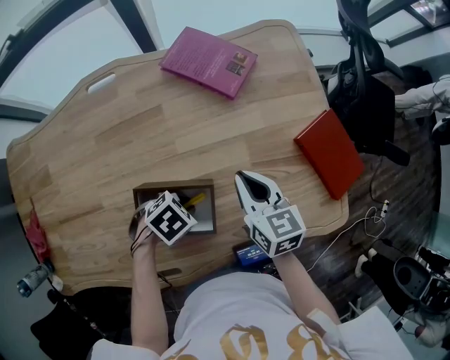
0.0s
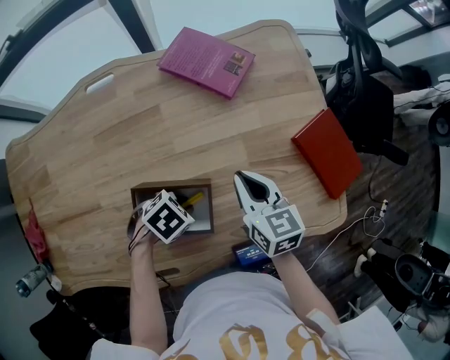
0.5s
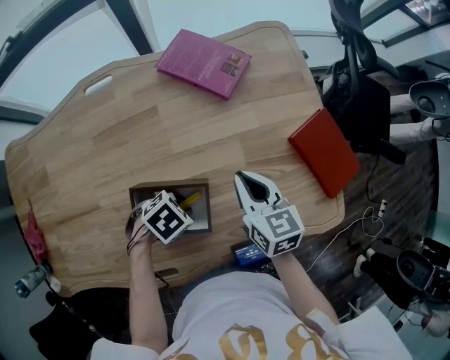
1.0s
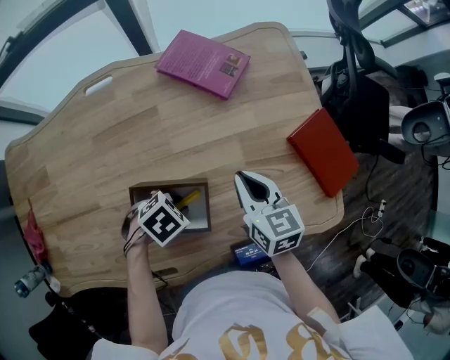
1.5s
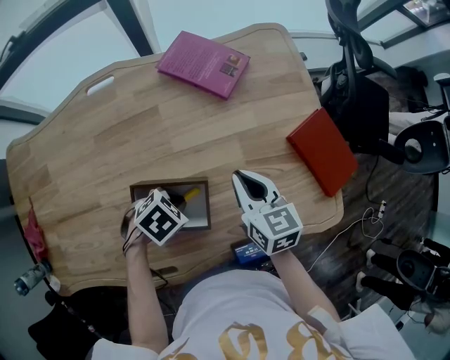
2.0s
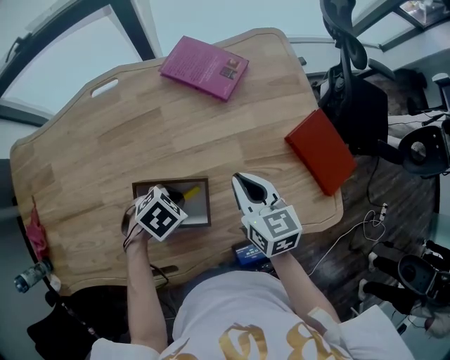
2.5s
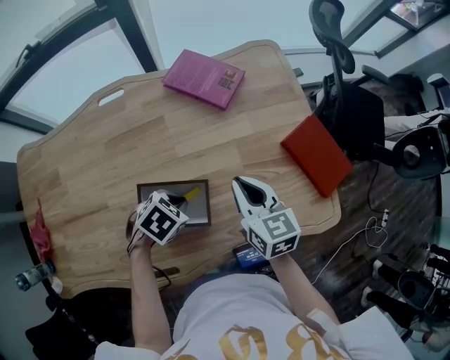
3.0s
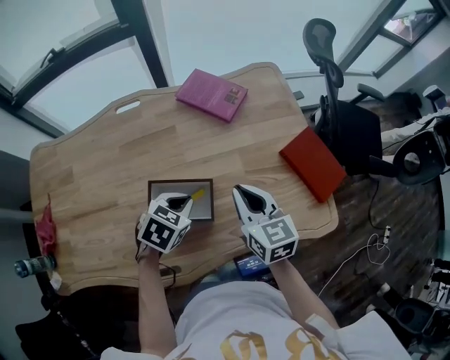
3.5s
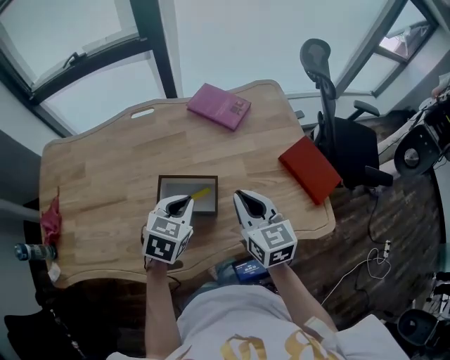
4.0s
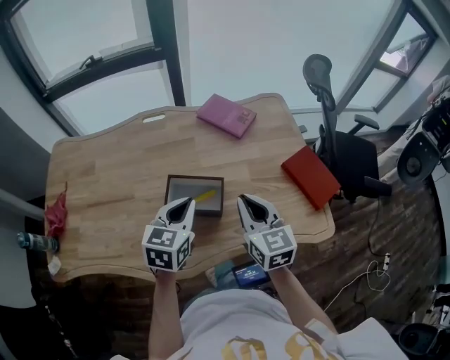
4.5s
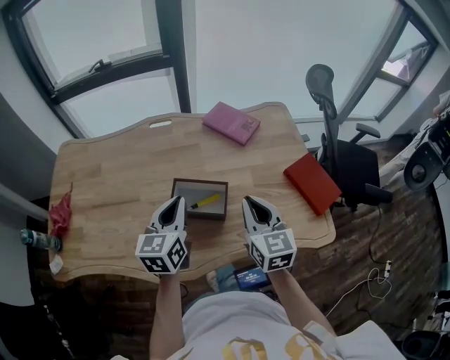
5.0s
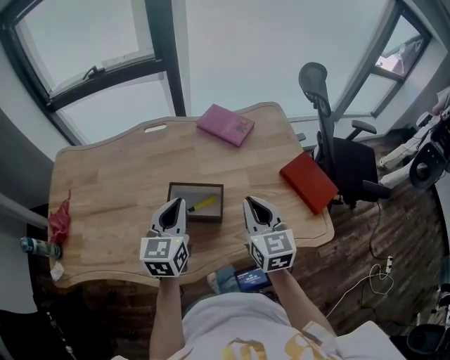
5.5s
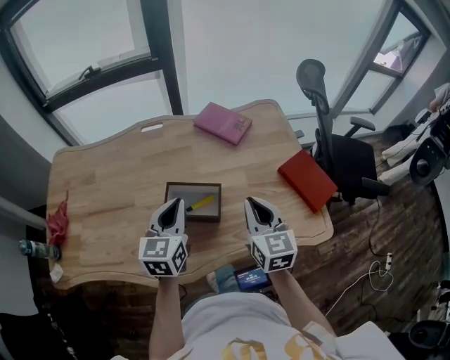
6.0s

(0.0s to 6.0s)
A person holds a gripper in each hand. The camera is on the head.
0.0s - 2.0s: The grippers move only a little.
2.0s - 4.0s: The two grippers go about 15 cm upward. The left gripper swivels roughly 50 degrees.
4.0s - 6.0s: The left gripper travels upward by approximately 5 cm, and changes its angle by roughly 30 degrees.

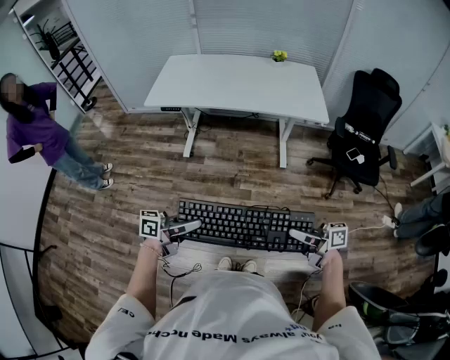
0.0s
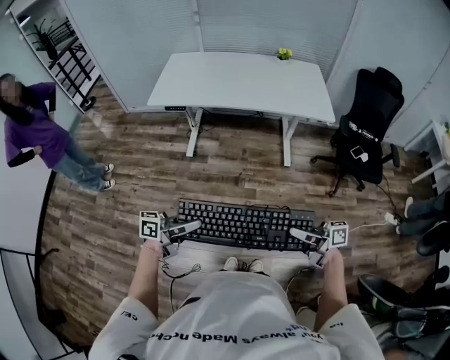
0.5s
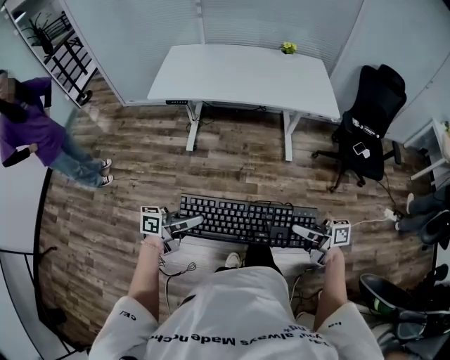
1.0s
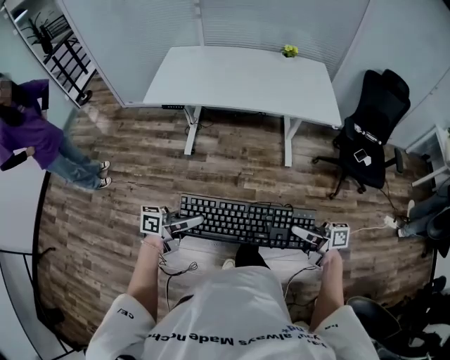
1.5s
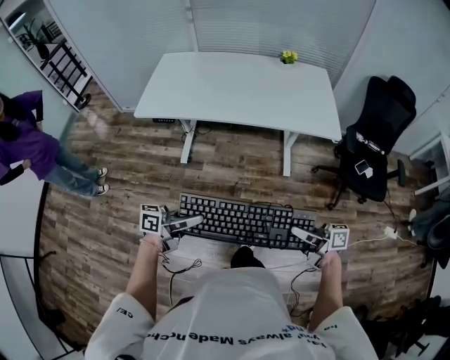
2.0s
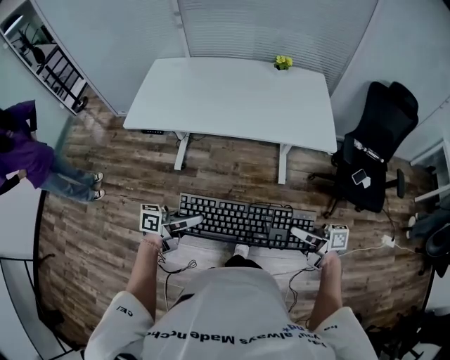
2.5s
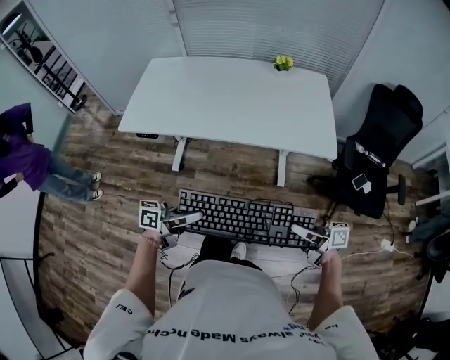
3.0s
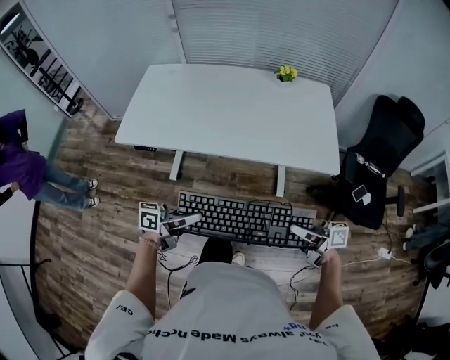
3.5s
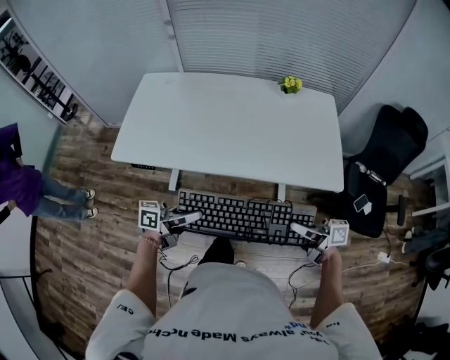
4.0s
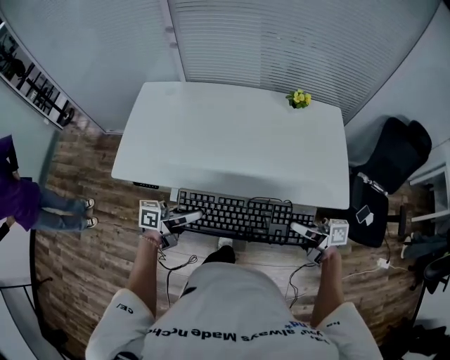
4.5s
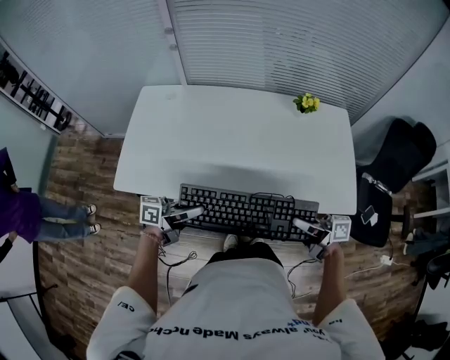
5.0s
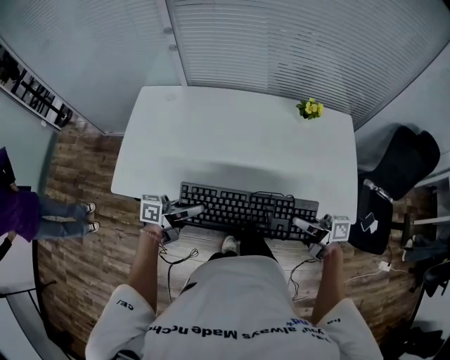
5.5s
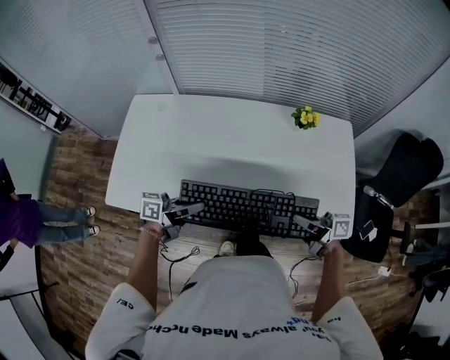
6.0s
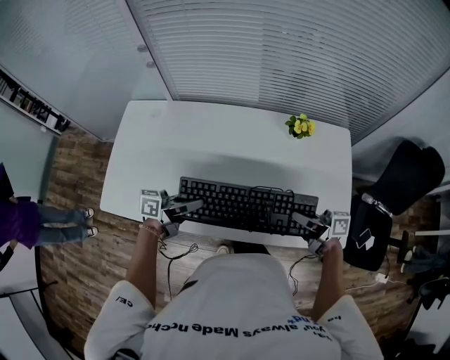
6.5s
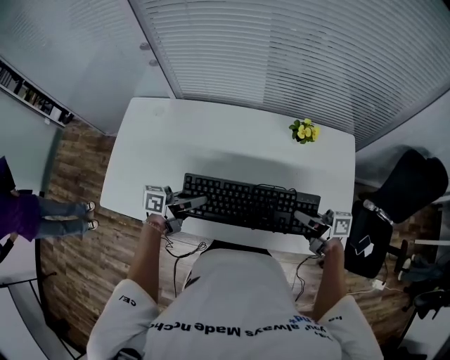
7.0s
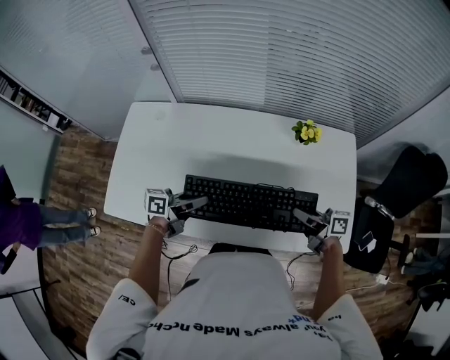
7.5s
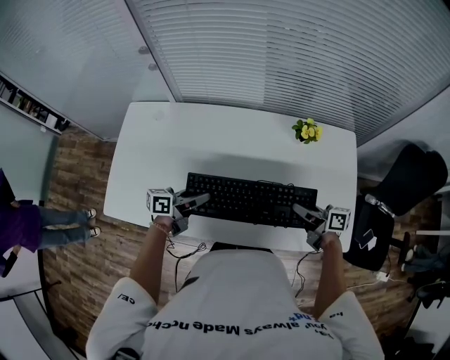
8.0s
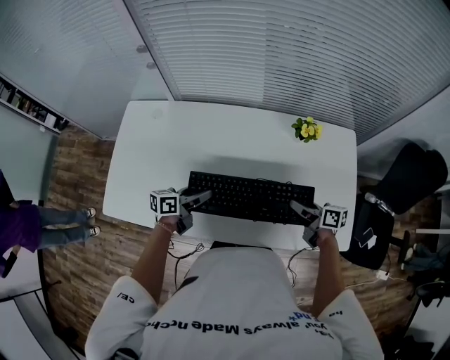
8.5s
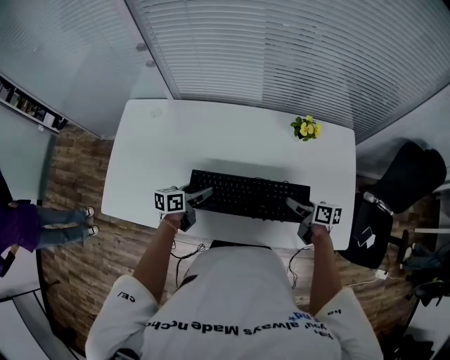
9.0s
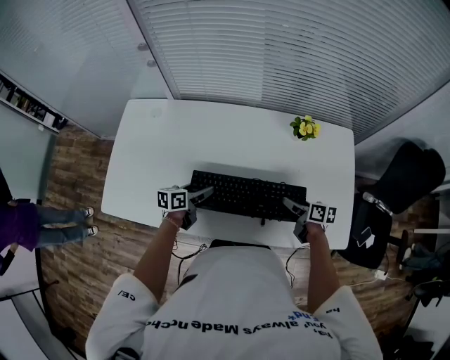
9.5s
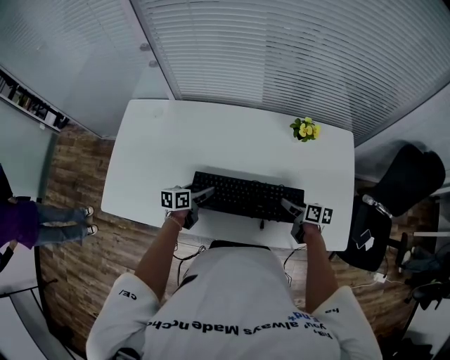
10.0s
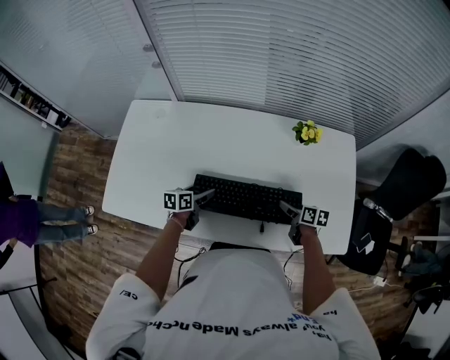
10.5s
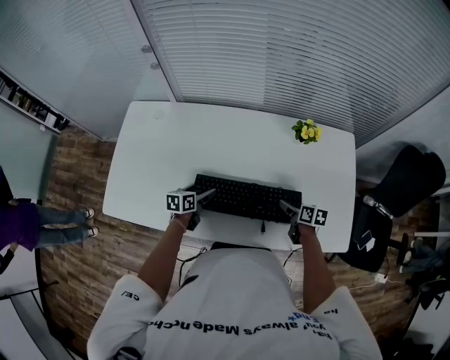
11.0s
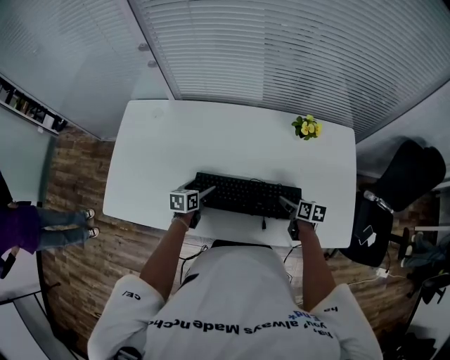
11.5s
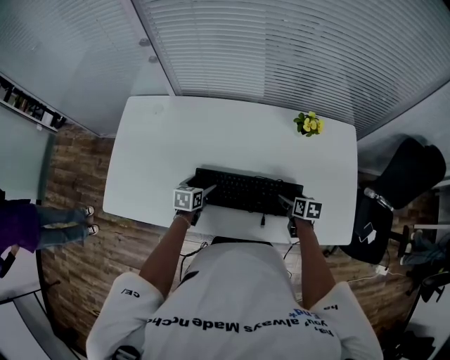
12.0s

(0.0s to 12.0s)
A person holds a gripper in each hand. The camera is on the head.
0.0s - 2.0s: The right gripper ends up about 20 cm from where it was. The left gripper moves about 20 cm.
2.0s - 4.0s: The right gripper changes place by some 30 cm; the left gripper shifts by approximately 30 cm.
4.0s - 6.0s: The left gripper moves some 25 cm. Meanwhile the right gripper moves approximately 25 cm.
6.0s - 8.0s: The left gripper shifts by roughly 10 cm, while the right gripper shifts by about 10 cm.
8.0s - 10.0s: The two grippers go approximately 10 cm downward. The left gripper changes its angle by roughly 30 degrees, and opens up. Meanwhile the right gripper turns by some 30 degrees, and opens.
10.0s - 12.0s: The left gripper turns by roughly 20 degrees. Meanwhile the right gripper turns by about 20 degrees.

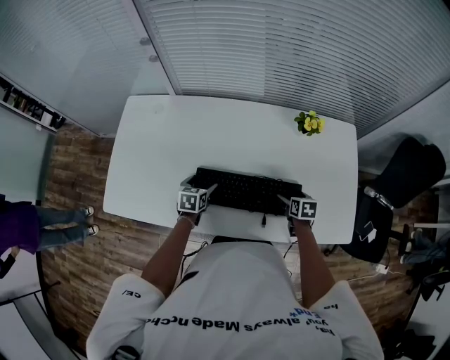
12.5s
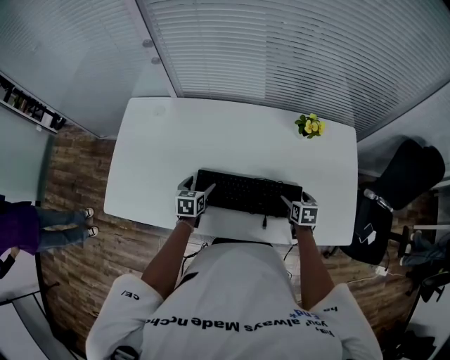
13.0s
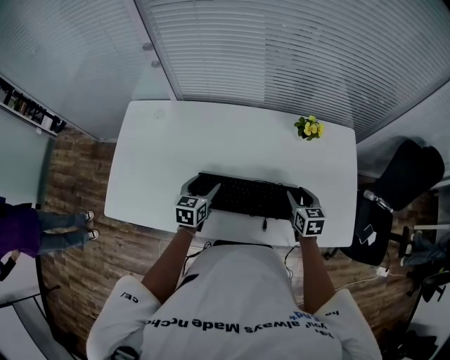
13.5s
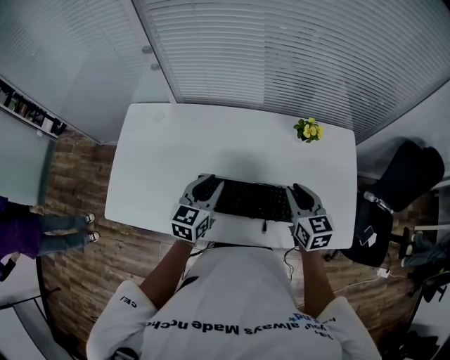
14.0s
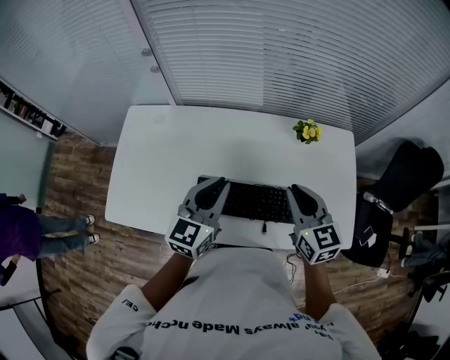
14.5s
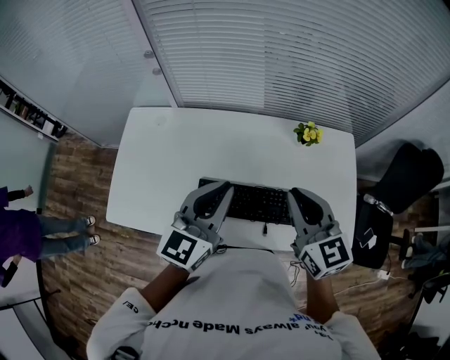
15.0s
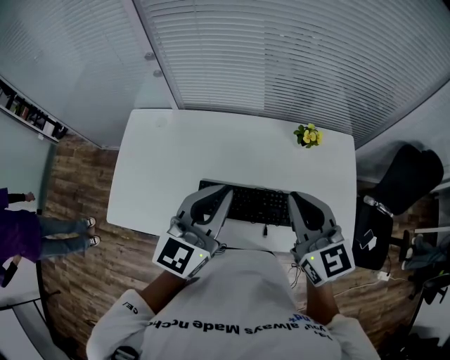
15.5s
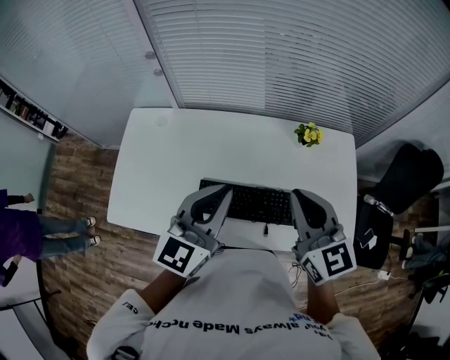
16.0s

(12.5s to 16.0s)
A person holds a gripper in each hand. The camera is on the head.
12.5s - 14.5s: The grippers both shift upward by approximately 30 cm. The right gripper angles its fingers upward, by roughly 40 degrees, and closes up. Meanwhile the left gripper tips its fingers upward by roughly 40 degrees, and closes its fingers.
14.5s - 16.0s: The two grippers go approximately 10 cm upward.

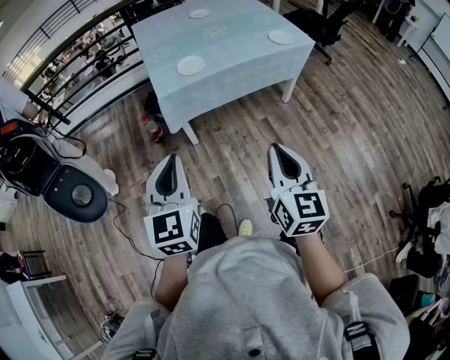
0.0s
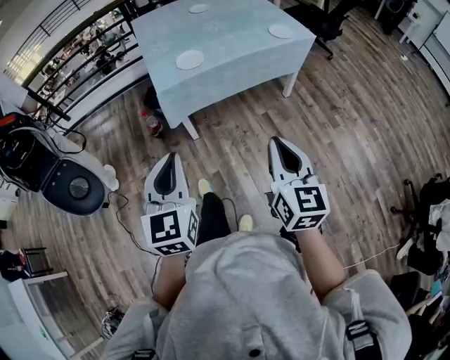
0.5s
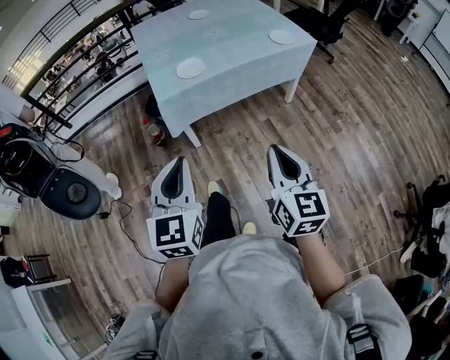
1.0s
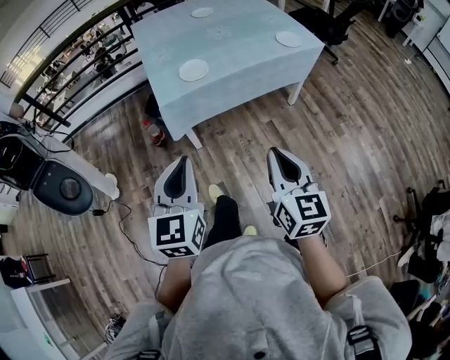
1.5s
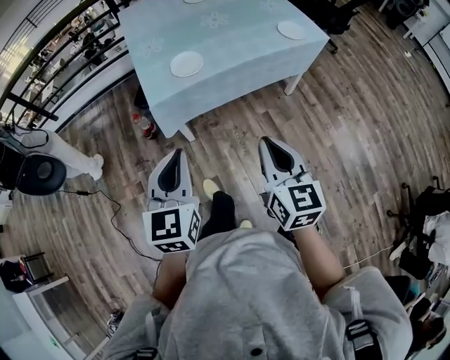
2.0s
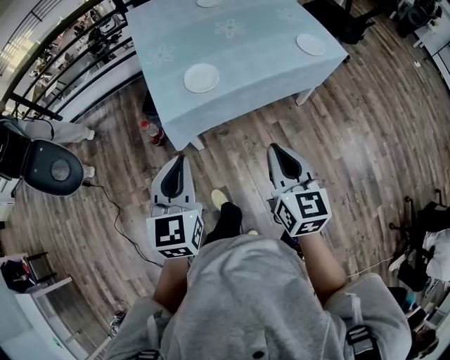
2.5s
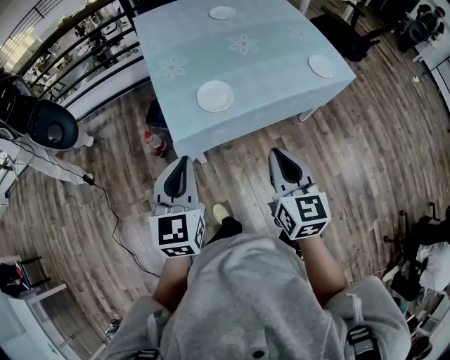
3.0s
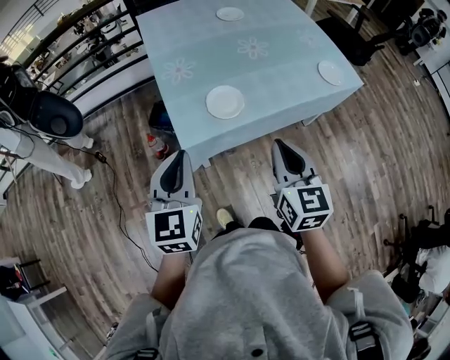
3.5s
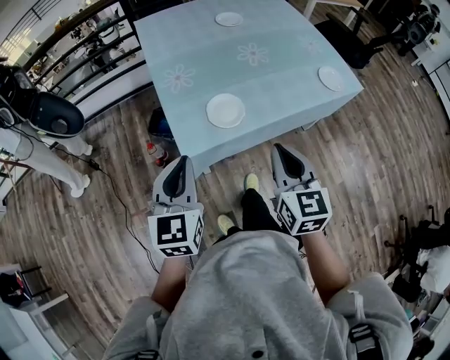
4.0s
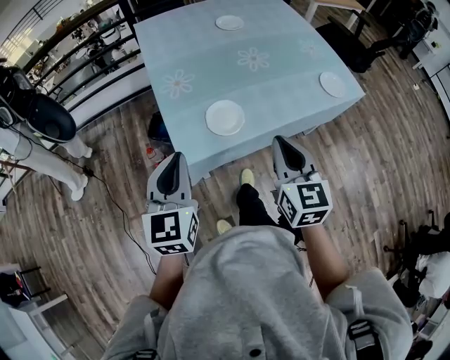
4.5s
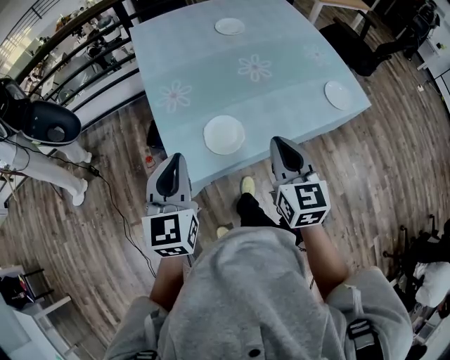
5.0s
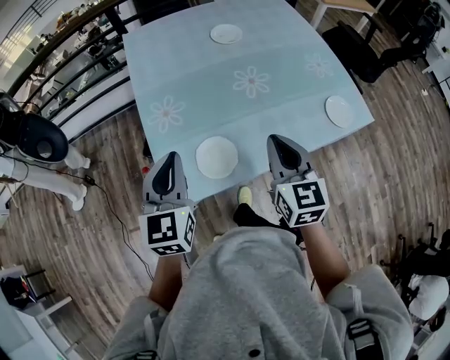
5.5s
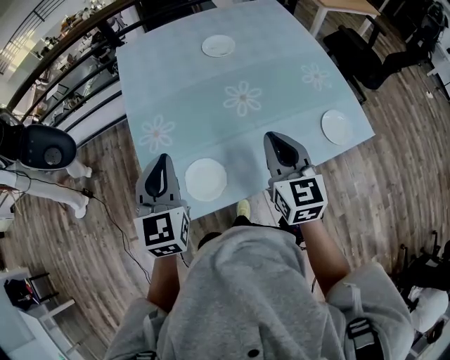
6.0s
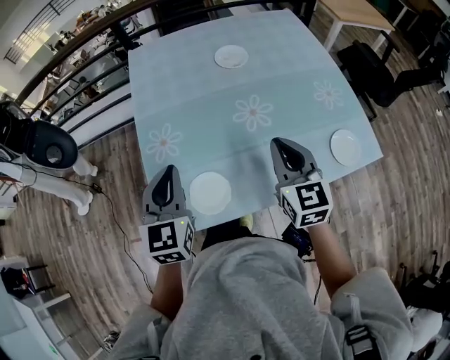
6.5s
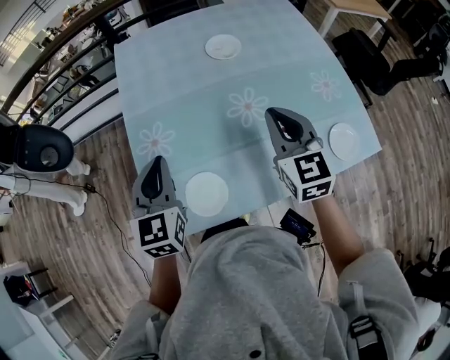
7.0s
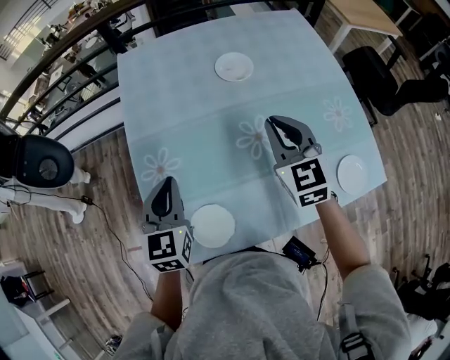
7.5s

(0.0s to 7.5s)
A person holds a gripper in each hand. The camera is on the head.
0.0s - 2.0s: The grippers both shift forward by roughly 15 cm.
2.0s - 4.0s: Both grippers travel together forward and to the left, roughly 25 cm.
4.0s - 5.5s: Both grippers travel together forward, approximately 20 cm.
5.5s - 7.5s: The left gripper moves forward, some 20 cm. The right gripper goes some 30 cm forward, and rotates some 20 degrees.
